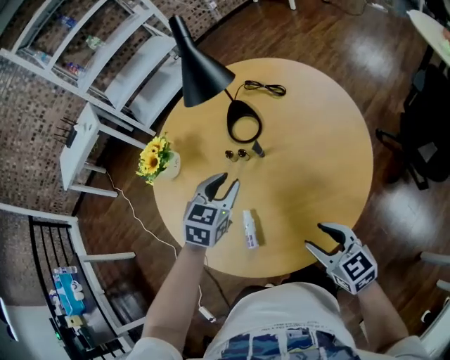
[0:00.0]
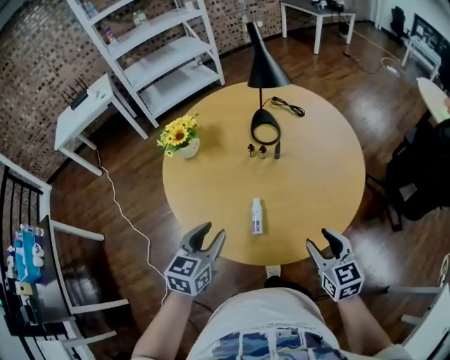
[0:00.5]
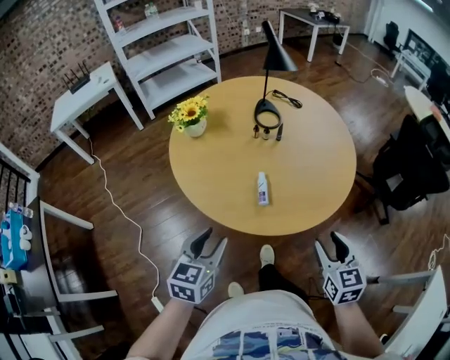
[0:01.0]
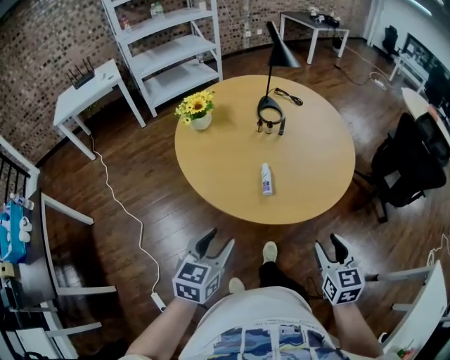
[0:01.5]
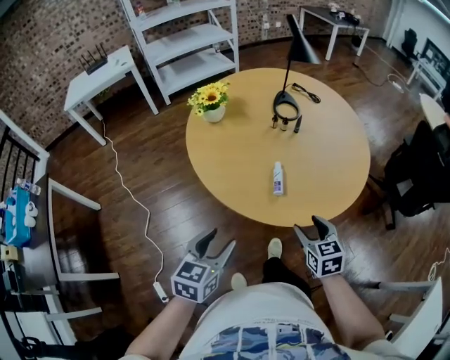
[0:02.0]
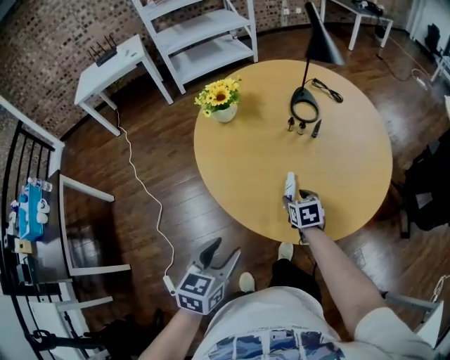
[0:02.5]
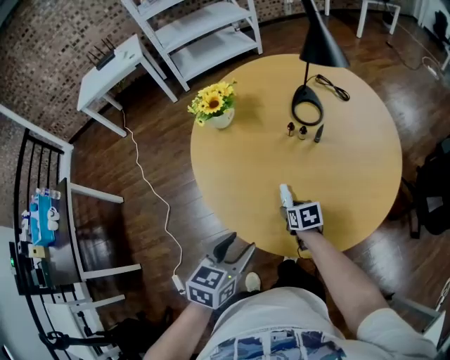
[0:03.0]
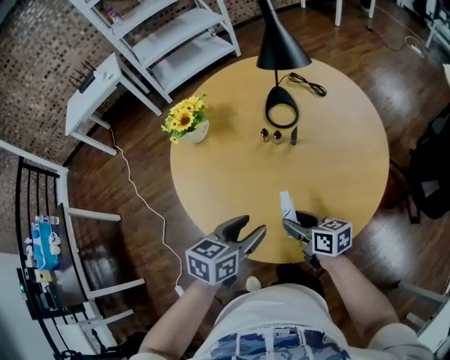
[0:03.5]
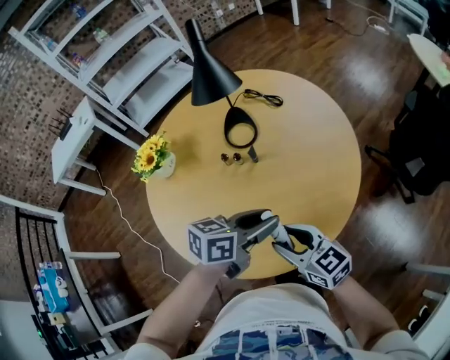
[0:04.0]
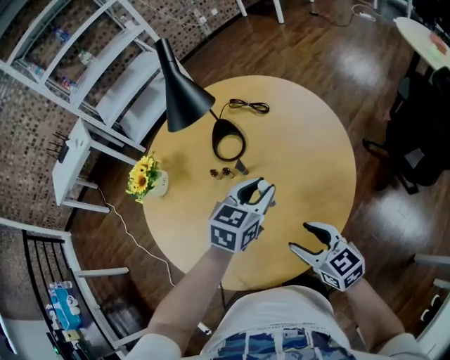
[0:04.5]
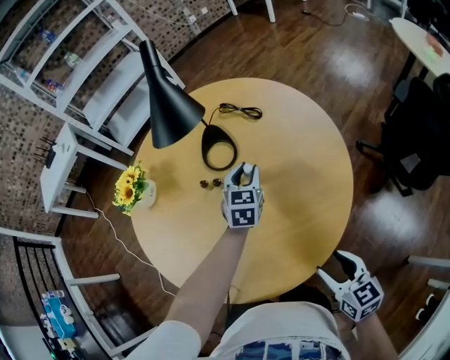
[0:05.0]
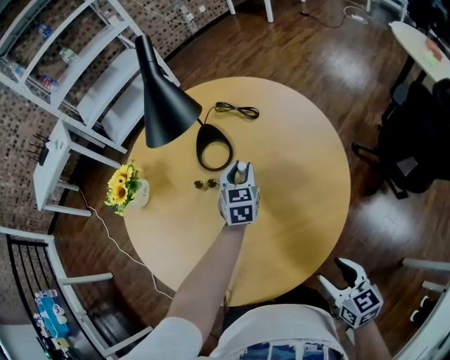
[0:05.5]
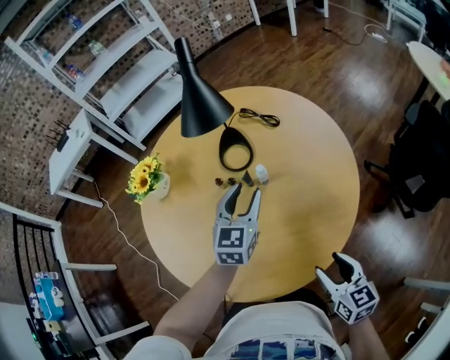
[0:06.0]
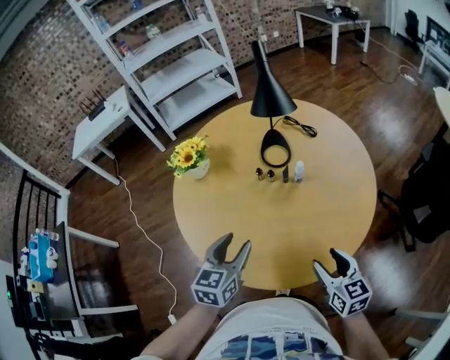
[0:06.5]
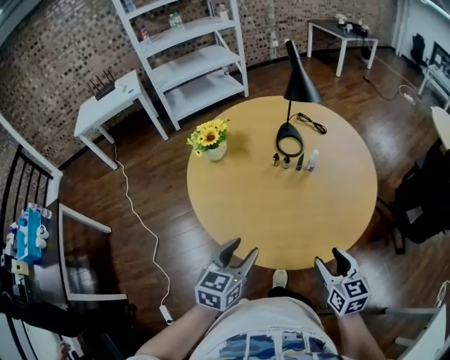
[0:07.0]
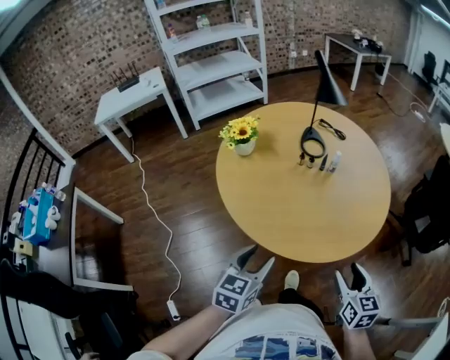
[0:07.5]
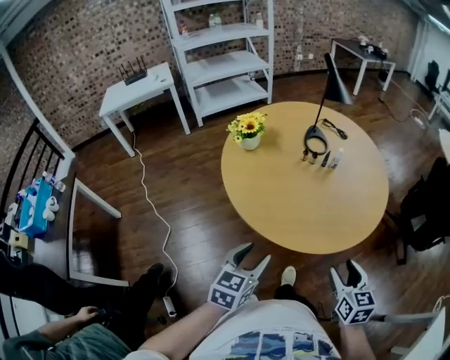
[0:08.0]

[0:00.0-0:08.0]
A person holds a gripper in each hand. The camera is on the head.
0:00.0 to 0:02.0: The right gripper heads backward and to the left, covering approximately 25 cm, and rotates some 20 degrees, while the left gripper shifts some 50 cm backward and to the left, and turns by some 30 degrees.
0:02.0 to 0:04.0: The left gripper travels to the right and forward by approximately 50 cm, and rotates roughly 40 degrees. The right gripper shifts approximately 20 cm forward and to the right, and changes its angle by approximately 30 degrees.
0:04.0 to 0:06.0: The left gripper is displaced forward by roughly 15 cm, and changes its angle by some 50 degrees, while the right gripper shifts about 15 cm to the right, and changes its angle by roughly 30 degrees.
0:06.0 to 0:08.0: The right gripper heads to the left and backward, covering roughly 35 cm, while the left gripper moves backward and to the left, approximately 60 cm.

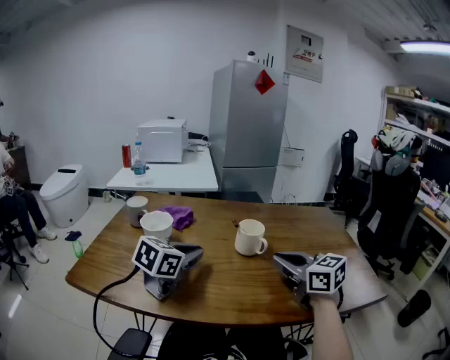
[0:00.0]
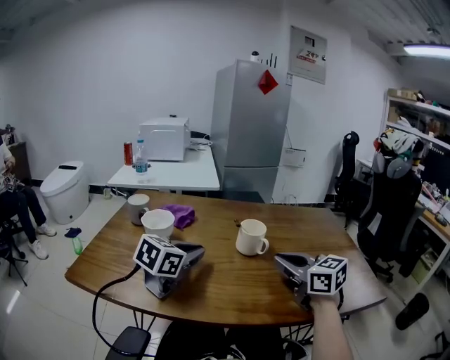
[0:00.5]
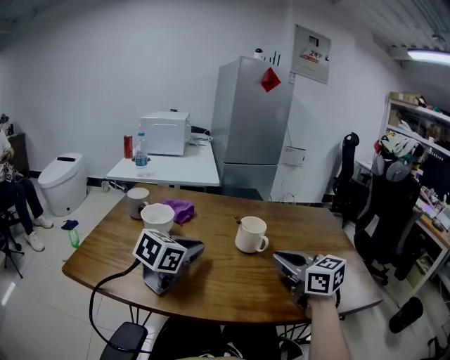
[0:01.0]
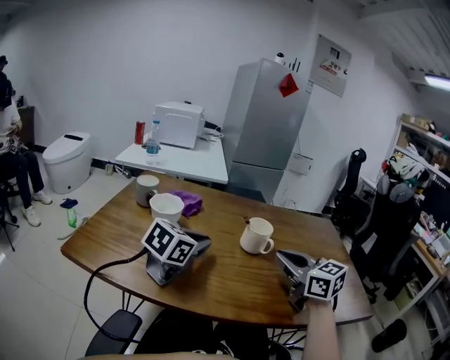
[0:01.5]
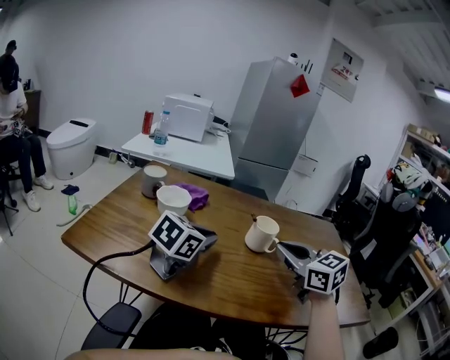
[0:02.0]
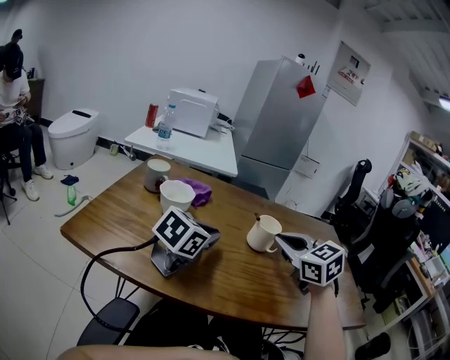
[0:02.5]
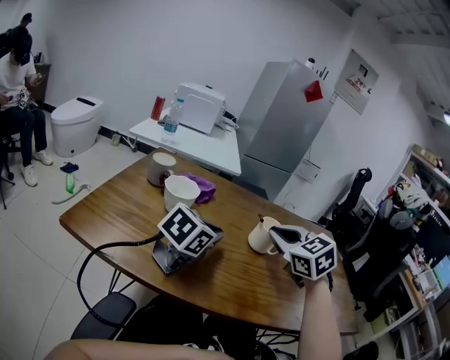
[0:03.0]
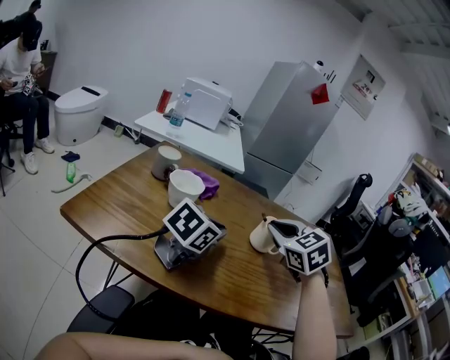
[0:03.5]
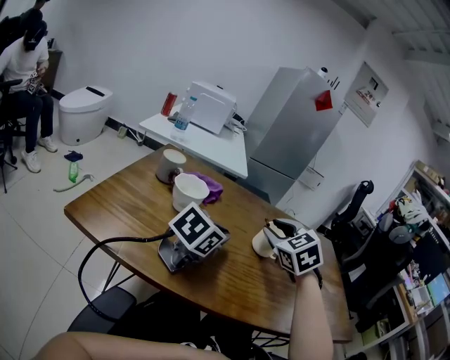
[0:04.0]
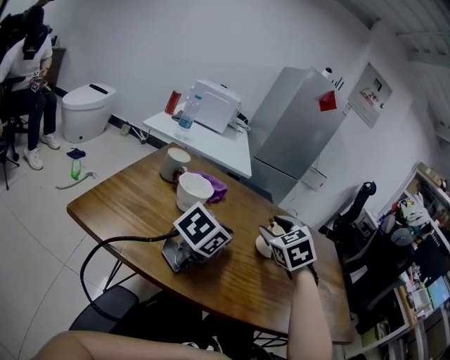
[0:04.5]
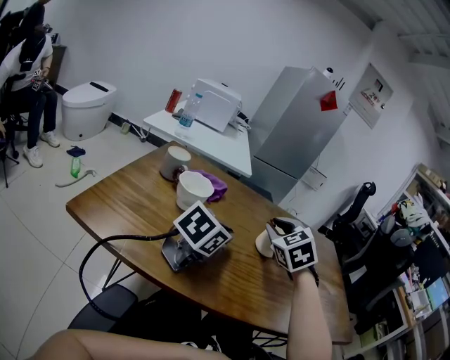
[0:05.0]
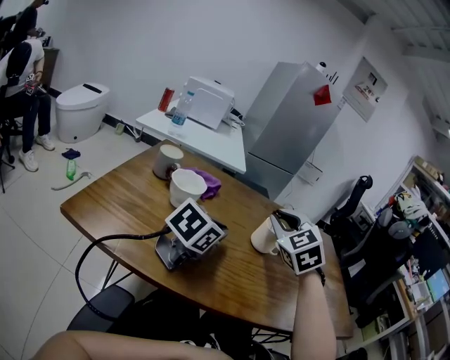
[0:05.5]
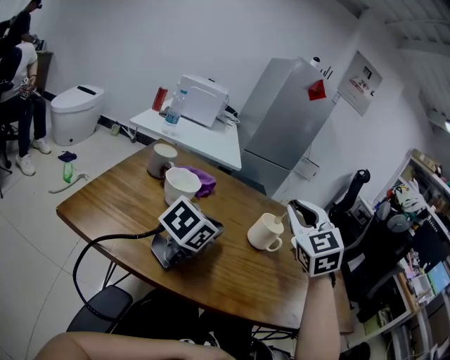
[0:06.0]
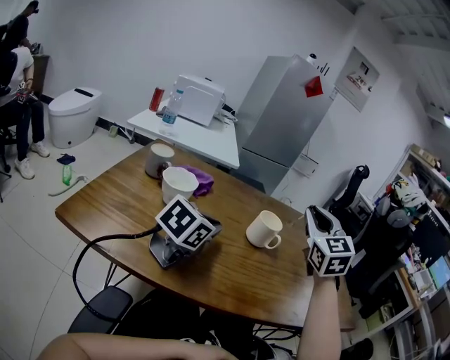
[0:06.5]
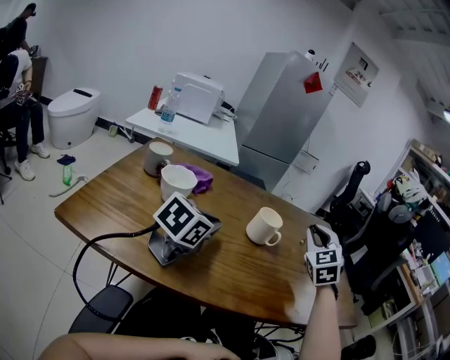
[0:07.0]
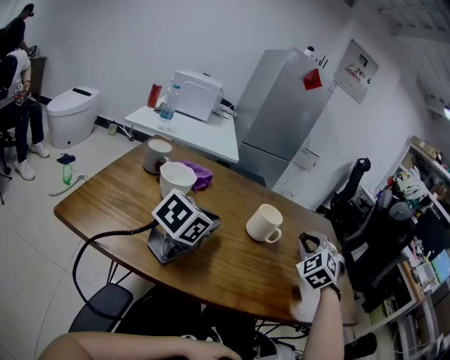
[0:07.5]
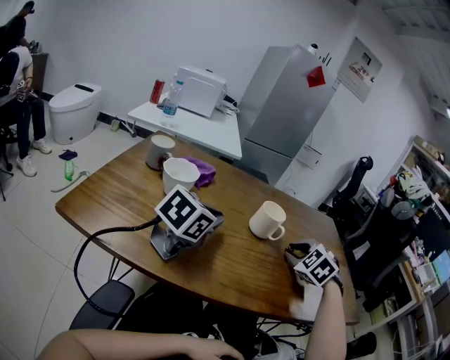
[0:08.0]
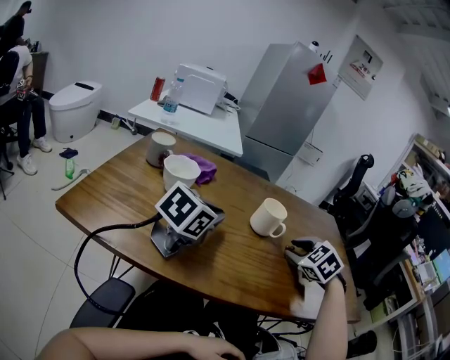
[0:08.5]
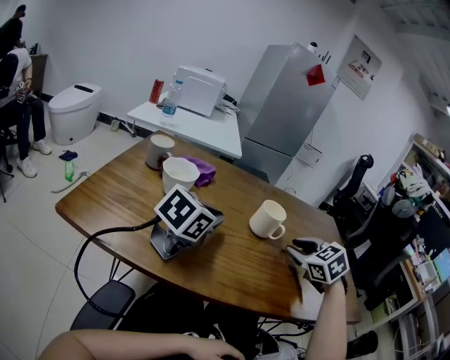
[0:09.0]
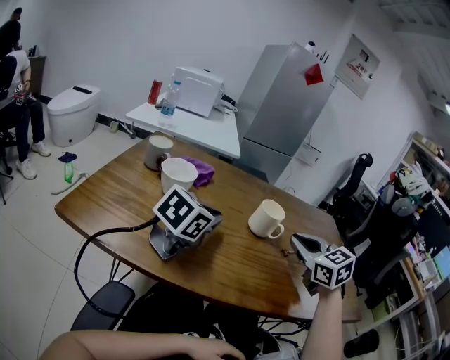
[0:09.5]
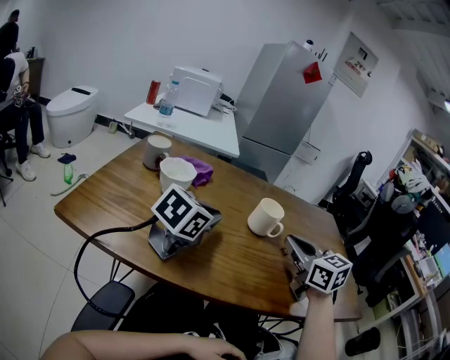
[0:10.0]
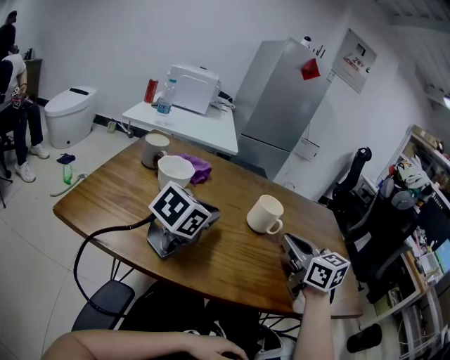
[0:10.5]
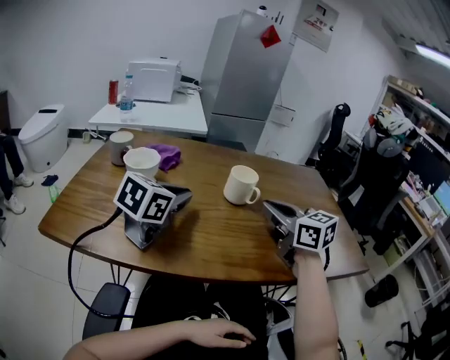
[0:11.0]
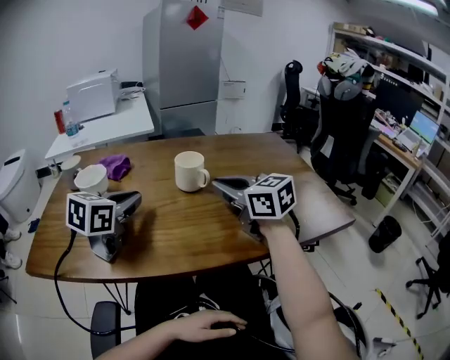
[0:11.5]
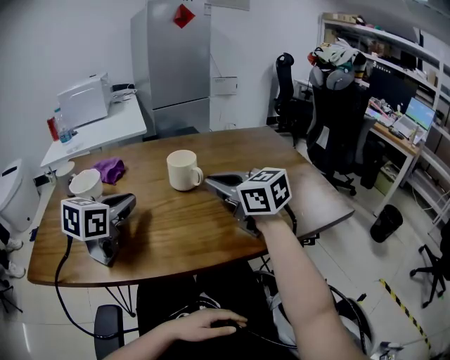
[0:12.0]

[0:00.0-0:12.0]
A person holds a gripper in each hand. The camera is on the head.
0:00.0 to 0:02.0: There are only small adjustments of the grippers.
0:02.0 to 0:04.0: The right gripper is displaced to the left and forward by roughly 10 cm, changes its angle by about 30 degrees, and opens its fingers.
0:04.0 to 0:06.0: The right gripper heads upward, covering some 10 cm.
0:06.0 to 0:08.0: The right gripper is displaced downward and to the right by about 20 cm, and points its fingers about 40 degrees further downward.
0:08.0 to 0:10.0: The right gripper goes about 5 cm upward, and tilts its fingers some 30 degrees upward.
0:10.0 to 0:12.0: There are only small adjustments of the grippers.

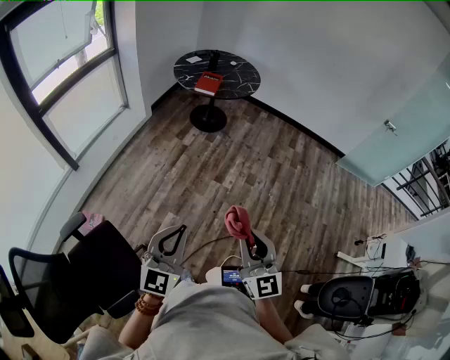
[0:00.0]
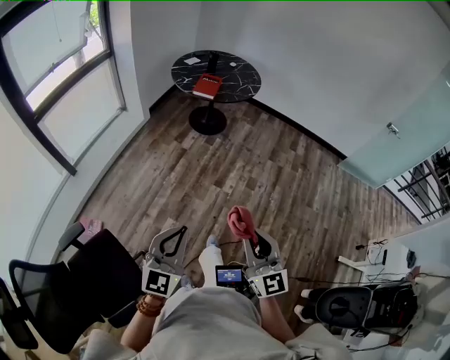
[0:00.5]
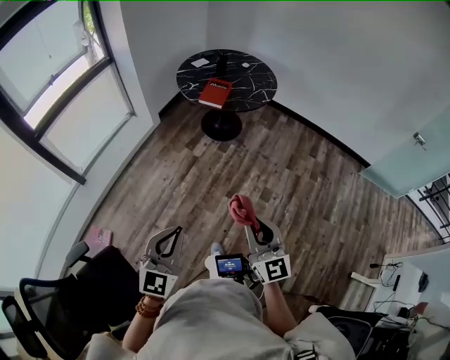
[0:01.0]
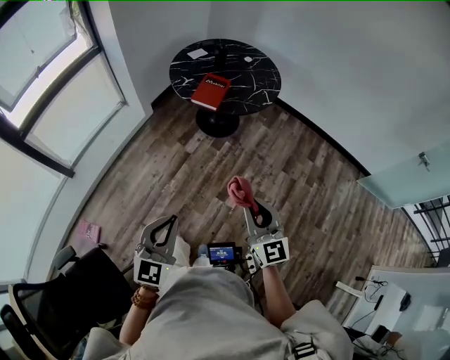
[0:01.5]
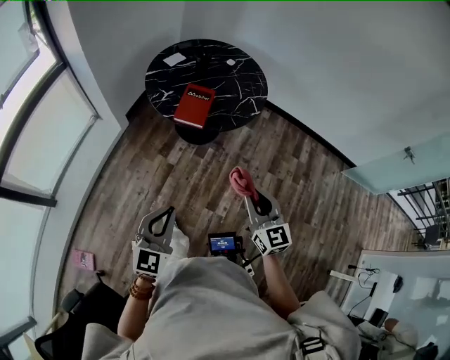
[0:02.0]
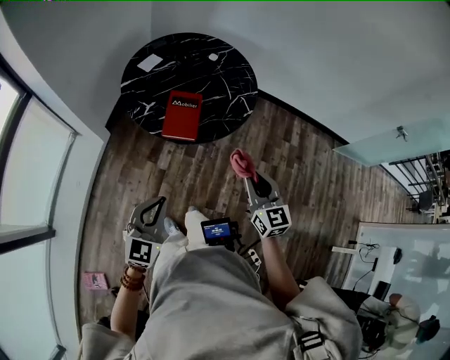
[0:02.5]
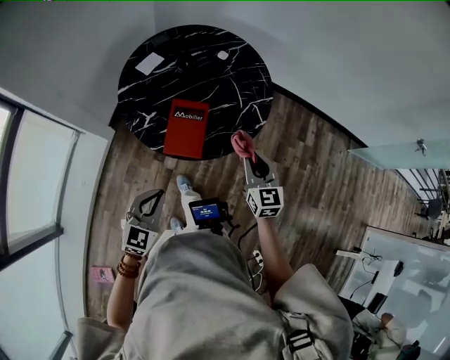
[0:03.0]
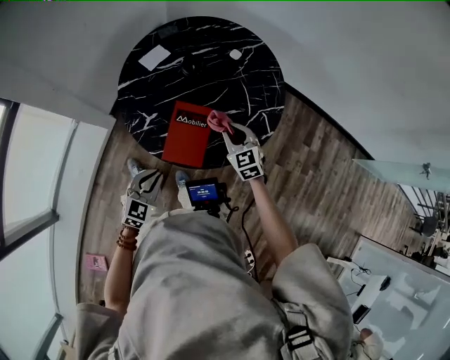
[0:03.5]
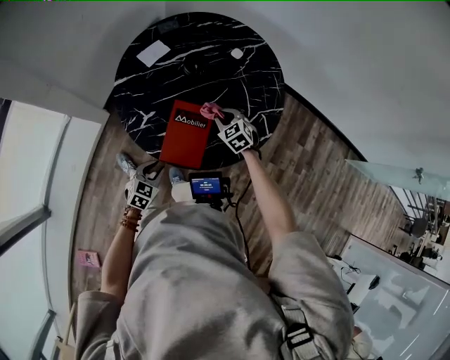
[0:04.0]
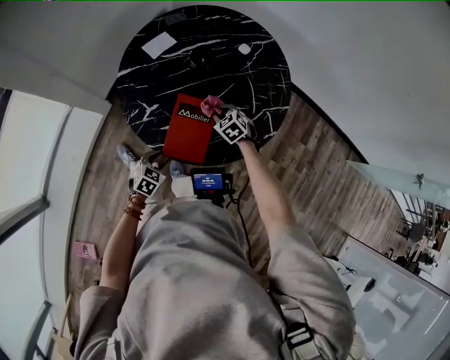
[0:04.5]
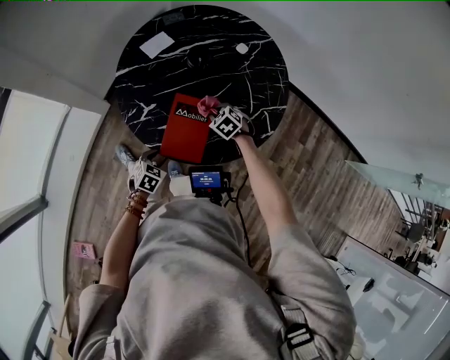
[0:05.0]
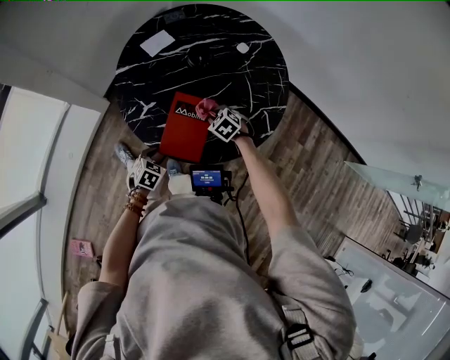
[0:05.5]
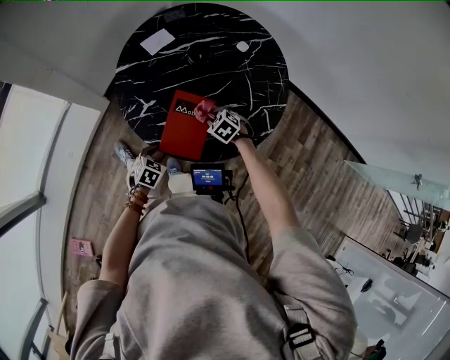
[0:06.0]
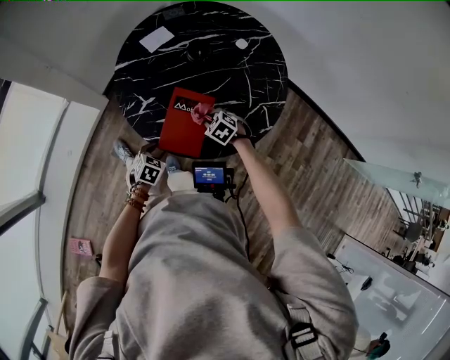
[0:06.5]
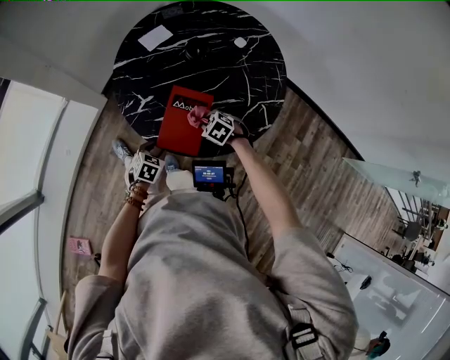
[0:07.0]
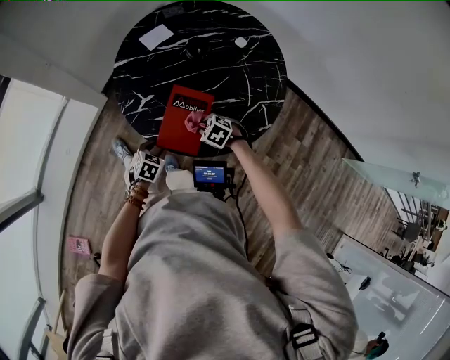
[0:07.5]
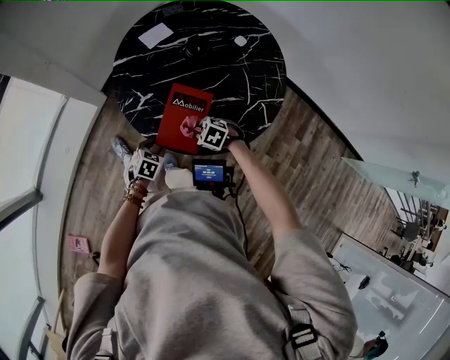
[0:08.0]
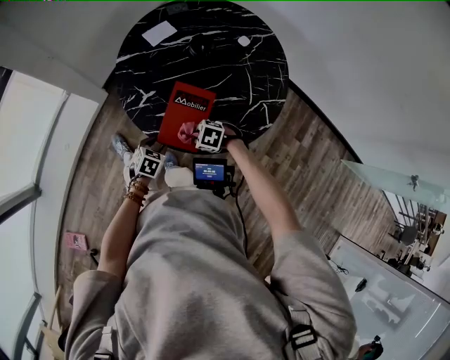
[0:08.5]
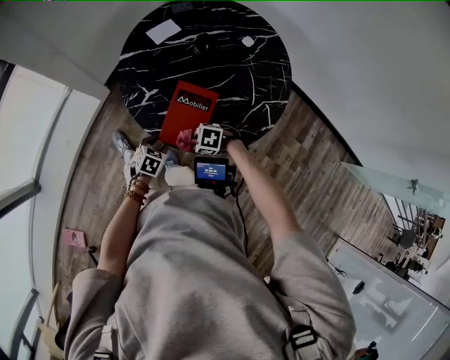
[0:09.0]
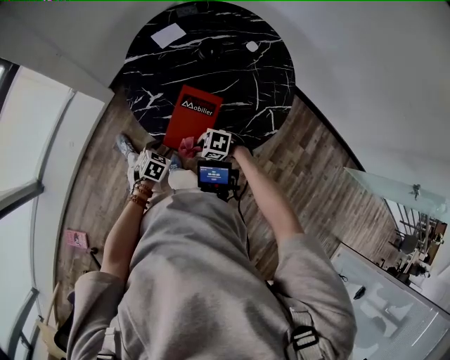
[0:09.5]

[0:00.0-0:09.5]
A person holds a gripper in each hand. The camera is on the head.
0:00.0 to 0:02.0: Both grippers are carried forward, some 60 cm.
0:02.0 to 0:04.0: Both grippers are carried forward, about 50 cm. Both grippers move downward, approximately 30 cm. The left gripper tilts its fingers approximately 30 degrees downward, and opens, while the right gripper tilts its fingers approximately 40 degrees downward.
0:04.0 to 0:05.5: The right gripper heads downward, covering some 5 cm, and turns by some 20 degrees.
0:05.5 to 0:07.5: The right gripper shifts approximately 5 cm backward.
0:07.5 to 0:09.5: The right gripper moves approximately 10 cm, and turns by approximately 30 degrees.
